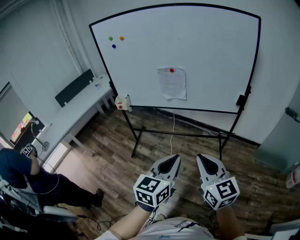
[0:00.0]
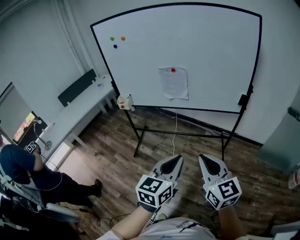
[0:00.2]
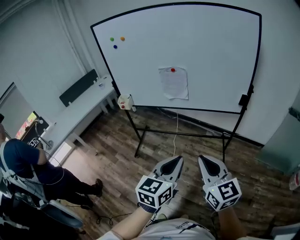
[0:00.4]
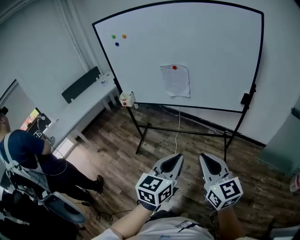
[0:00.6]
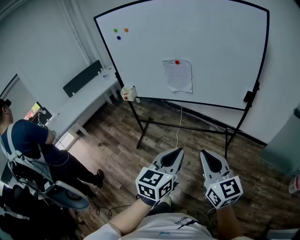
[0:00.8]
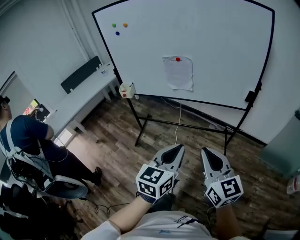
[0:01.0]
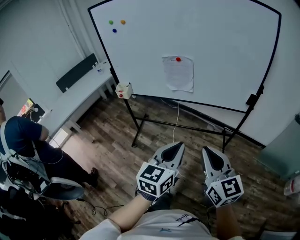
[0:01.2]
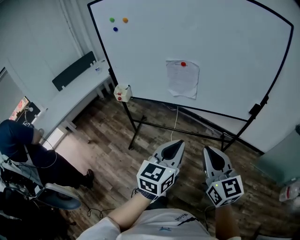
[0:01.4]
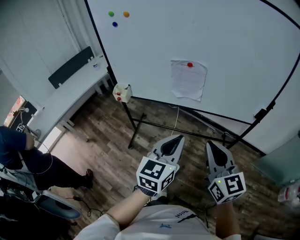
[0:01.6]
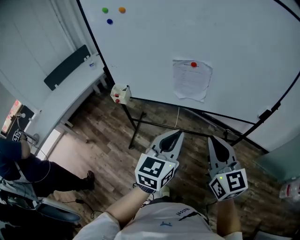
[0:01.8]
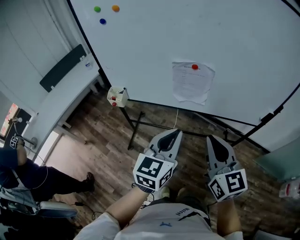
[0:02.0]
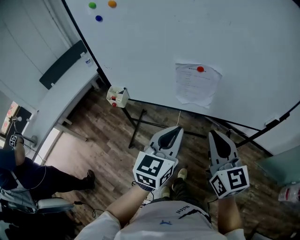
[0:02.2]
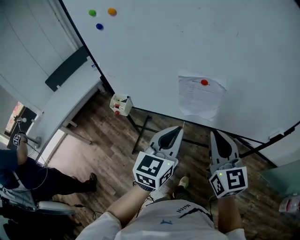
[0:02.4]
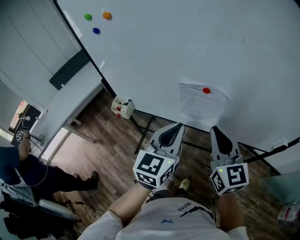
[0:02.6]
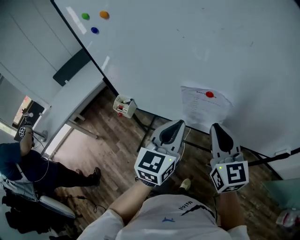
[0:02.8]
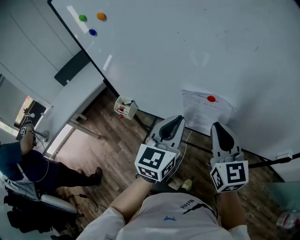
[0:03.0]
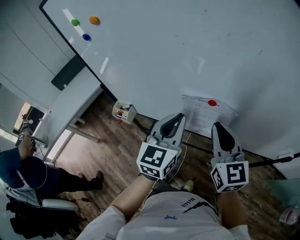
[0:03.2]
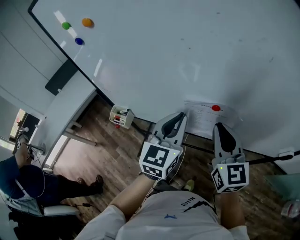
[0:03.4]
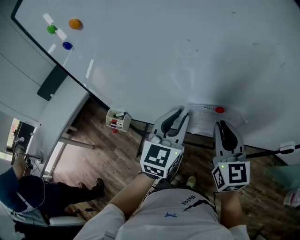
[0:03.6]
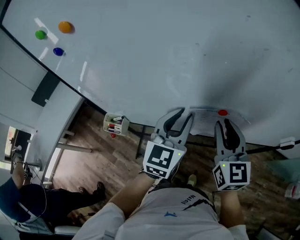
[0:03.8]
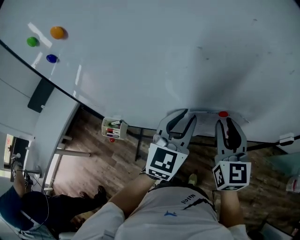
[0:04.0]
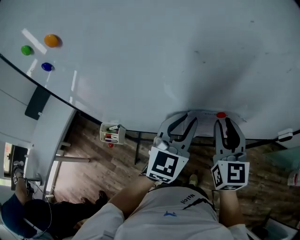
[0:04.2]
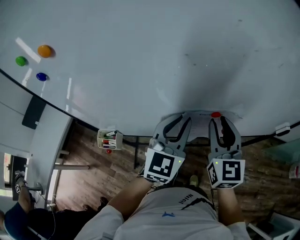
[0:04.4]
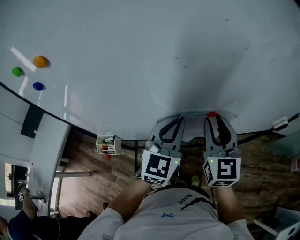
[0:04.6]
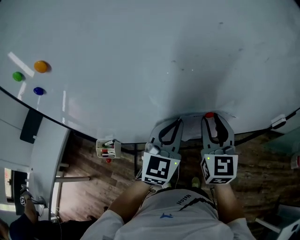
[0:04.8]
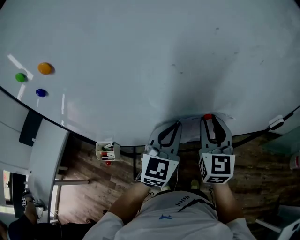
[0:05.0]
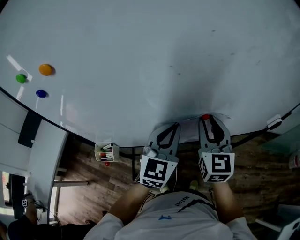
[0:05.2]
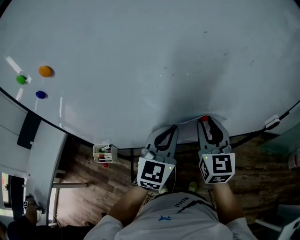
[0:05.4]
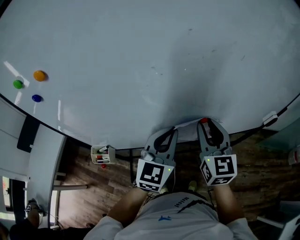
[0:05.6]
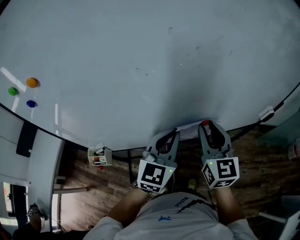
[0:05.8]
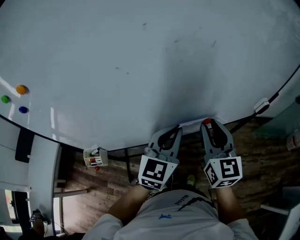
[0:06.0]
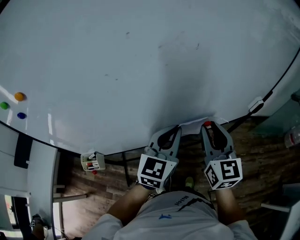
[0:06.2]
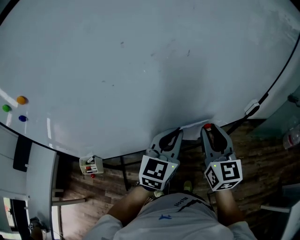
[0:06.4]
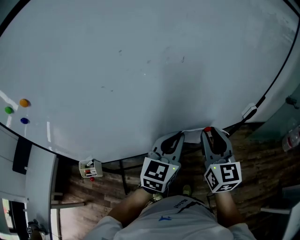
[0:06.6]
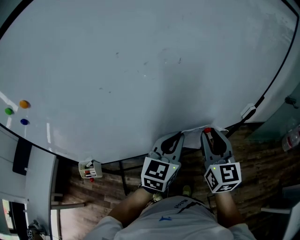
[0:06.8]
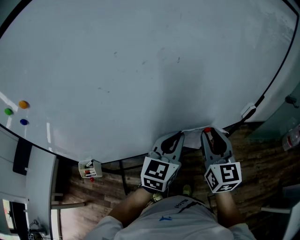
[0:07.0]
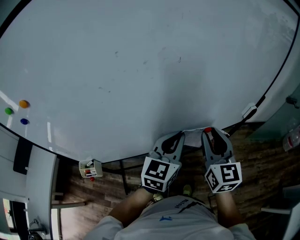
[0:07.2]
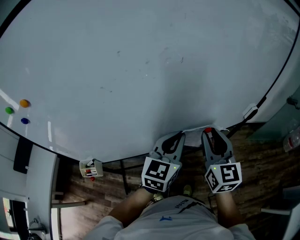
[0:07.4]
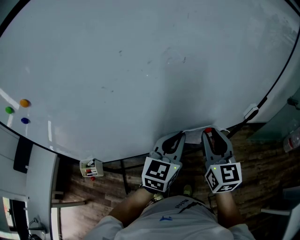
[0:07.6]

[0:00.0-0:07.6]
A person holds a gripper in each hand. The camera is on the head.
0.0 to 1.6 s: Both grippers travel together forward, some 20 cm.
1.6 to 3.0 s: The grippers both shift forward by approximately 35 cm.
3.0 to 4.6 s: The left gripper ends up roughly 10 cm from where it was, and turns by roughly 30 degrees; the right gripper shifts by some 5 cm, turns by roughly 30 degrees, and opens its fingers.
4.6 to 6.0 s: The grippers both shift to the right by roughly 10 cm.
6.0 to 7.6 s: Both grippers travel together to the right, some 5 cm.

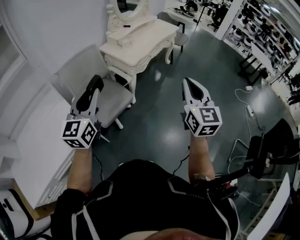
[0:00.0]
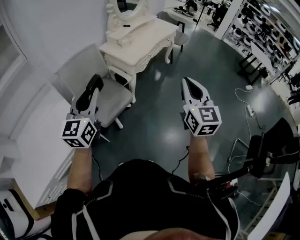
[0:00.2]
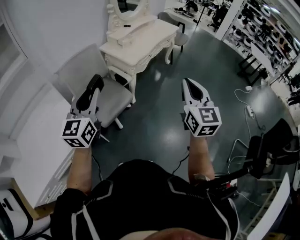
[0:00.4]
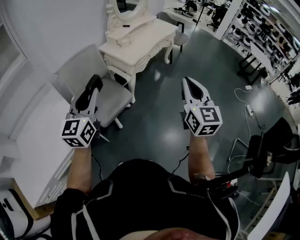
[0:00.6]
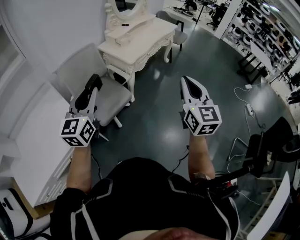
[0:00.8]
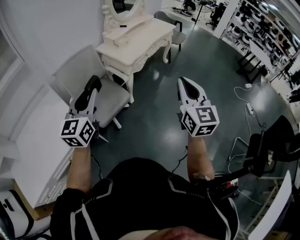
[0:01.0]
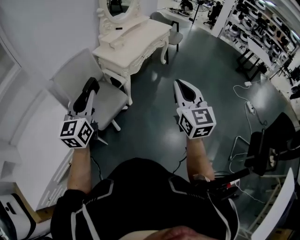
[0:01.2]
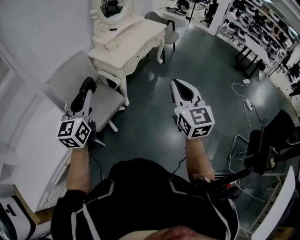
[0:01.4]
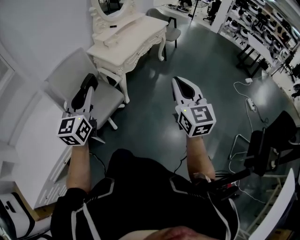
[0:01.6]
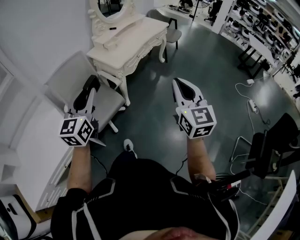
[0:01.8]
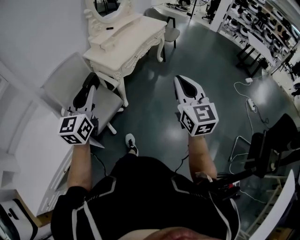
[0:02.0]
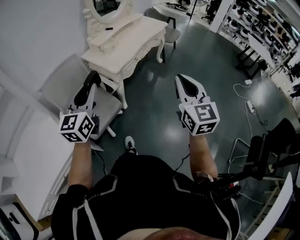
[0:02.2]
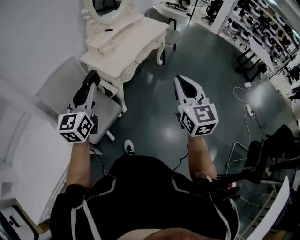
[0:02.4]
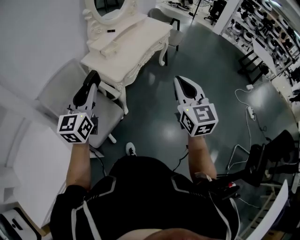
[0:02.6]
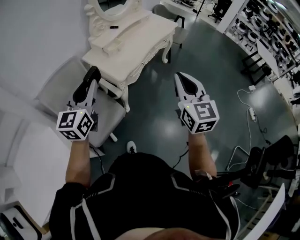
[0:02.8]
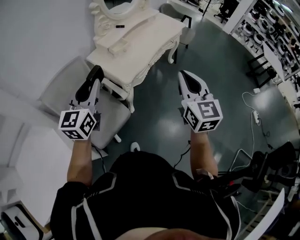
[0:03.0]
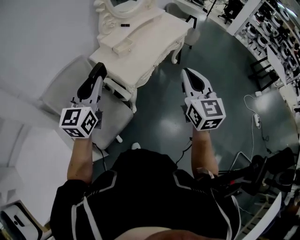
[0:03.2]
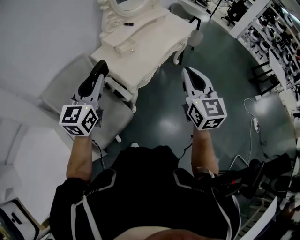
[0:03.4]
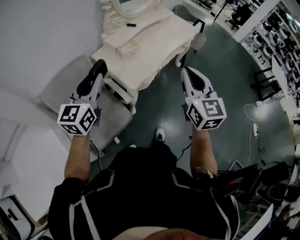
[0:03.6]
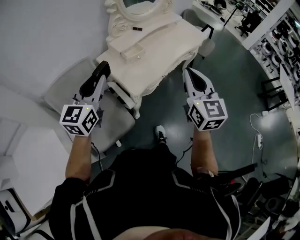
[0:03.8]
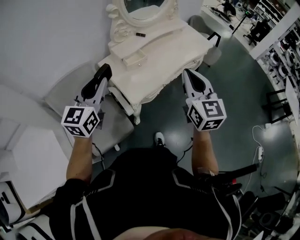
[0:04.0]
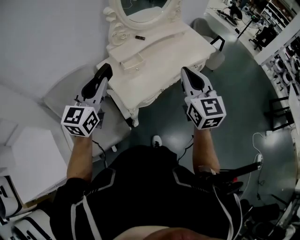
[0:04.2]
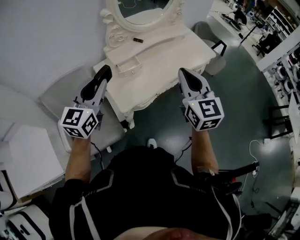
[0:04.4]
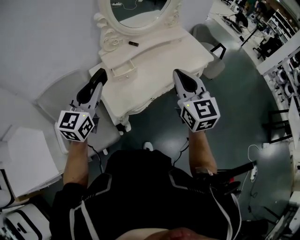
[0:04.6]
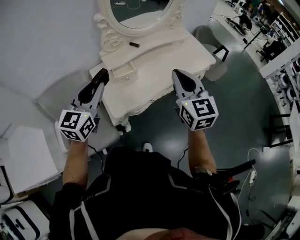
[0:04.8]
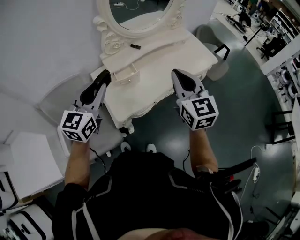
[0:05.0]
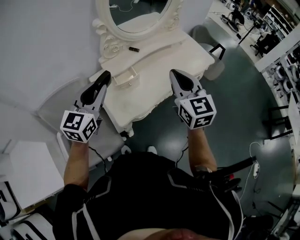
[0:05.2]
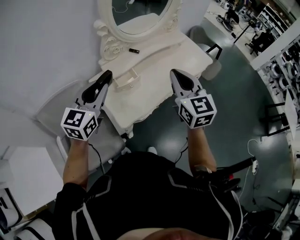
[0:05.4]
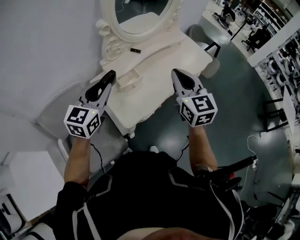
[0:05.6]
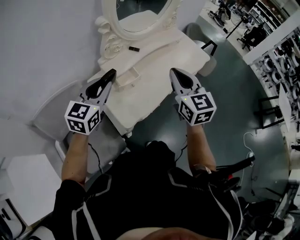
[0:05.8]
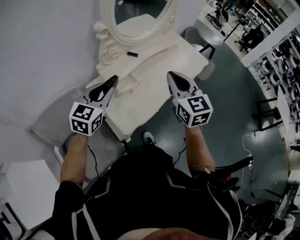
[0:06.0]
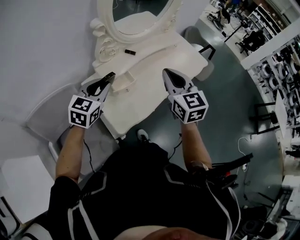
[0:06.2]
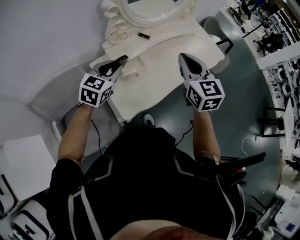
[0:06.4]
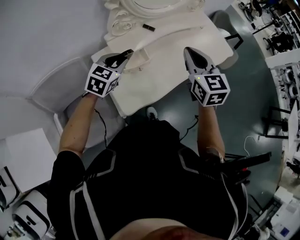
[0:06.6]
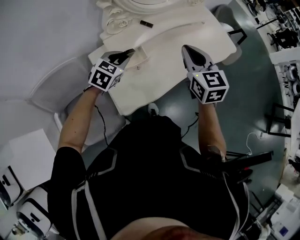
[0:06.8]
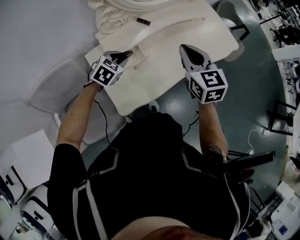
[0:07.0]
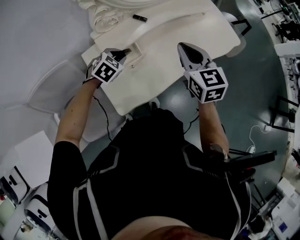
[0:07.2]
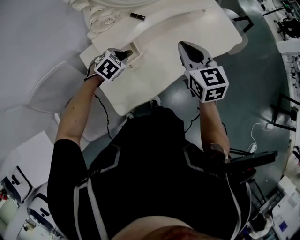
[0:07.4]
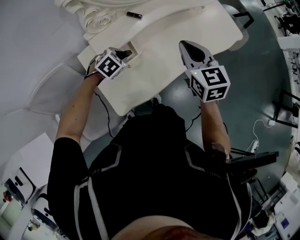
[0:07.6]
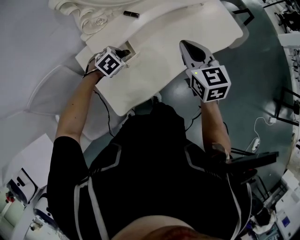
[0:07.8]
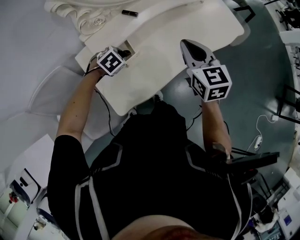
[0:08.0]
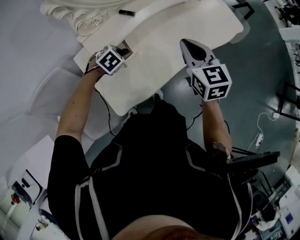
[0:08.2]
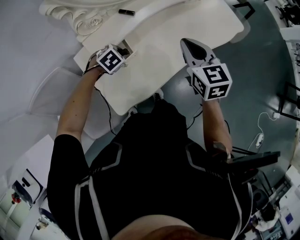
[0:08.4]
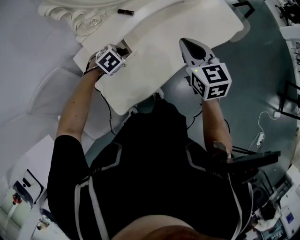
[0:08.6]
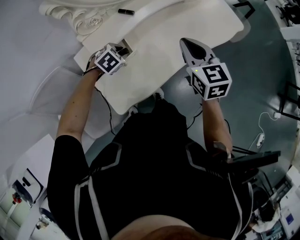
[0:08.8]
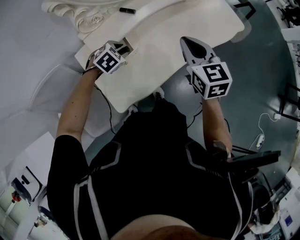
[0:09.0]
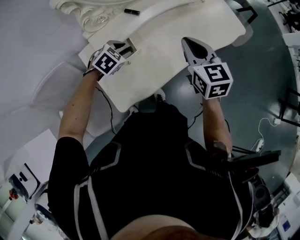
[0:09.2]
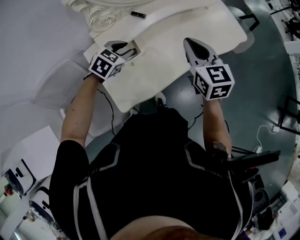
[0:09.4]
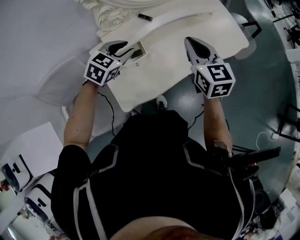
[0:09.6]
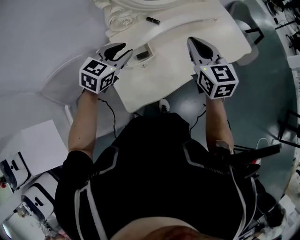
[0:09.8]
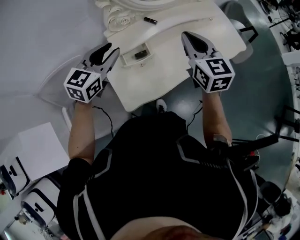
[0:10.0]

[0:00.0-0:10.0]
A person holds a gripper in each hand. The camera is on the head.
0.0 to 1.4 s: The grippers both shift to the right by approximately 5 cm.
1.4 to 2.8 s: The grippers both shift forward by roughly 30 cm.
2.8 to 4.2 s: Both grippers move forward, some 25 cm.
4.2 to 5.8 s: The grippers both shift forward by roughly 15 cm.
5.8 to 7.2 s: The right gripper goes roughly 20 cm forward and downward. Meanwhile the left gripper shifts roughly 30 cm downward and forward, and points its fingers about 40 degrees further downward.
7.2 to 8.6 s: The left gripper is displaced downward by about 10 cm; the right gripper changes place by about 5 cm.
8.6 to 10.0 s: The left gripper heads upward, covering roughly 30 cm, and tilts its fingers roughly 50 degrees upward. Meanwhile the right gripper goes some 10 cm upward and to the left.

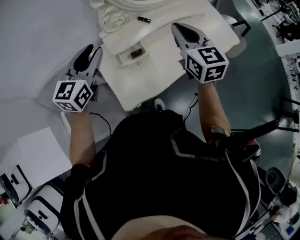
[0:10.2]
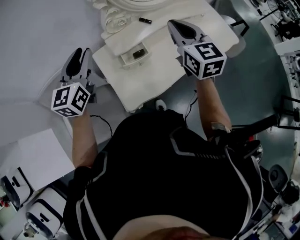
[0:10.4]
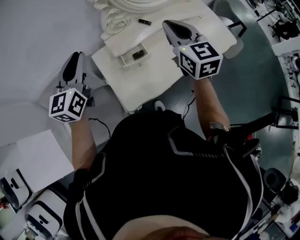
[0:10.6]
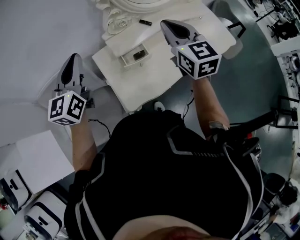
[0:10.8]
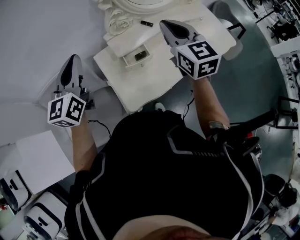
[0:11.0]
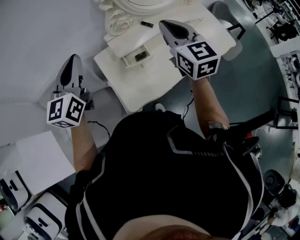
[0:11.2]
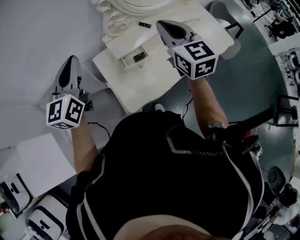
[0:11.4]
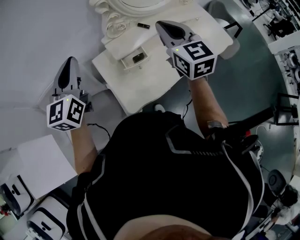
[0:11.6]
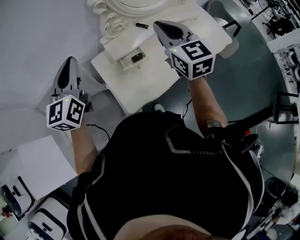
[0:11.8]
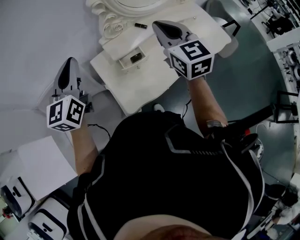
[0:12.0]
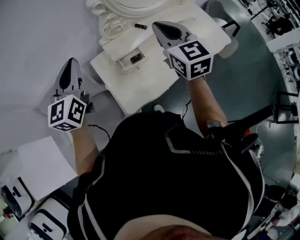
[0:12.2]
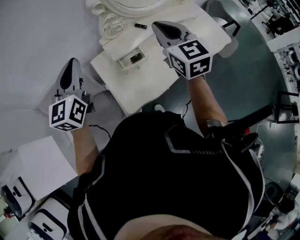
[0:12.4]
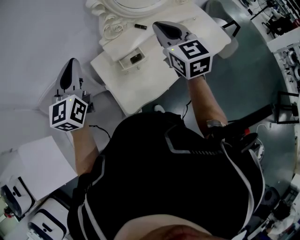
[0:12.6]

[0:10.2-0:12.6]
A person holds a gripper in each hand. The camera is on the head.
10.2 to 11.4 s: The right gripper goes some 5 cm to the left. The left gripper heads to the left and upward, covering about 10 cm, and closes up.
11.4 to 12.6 s: The grippers move only a little.

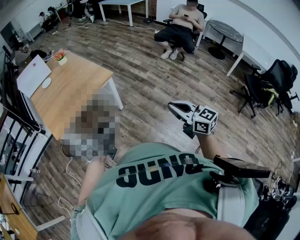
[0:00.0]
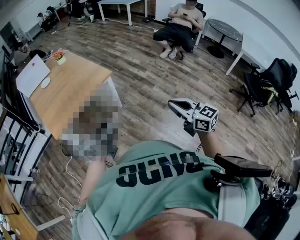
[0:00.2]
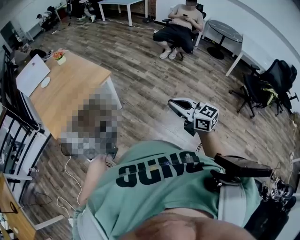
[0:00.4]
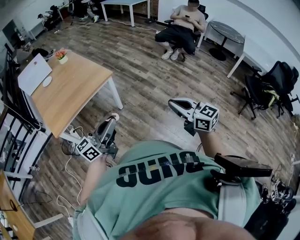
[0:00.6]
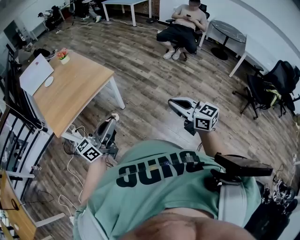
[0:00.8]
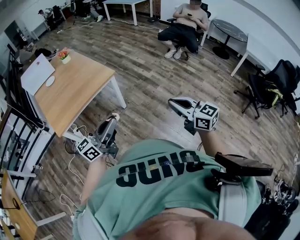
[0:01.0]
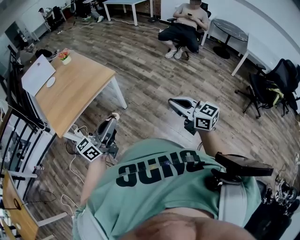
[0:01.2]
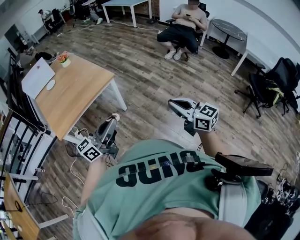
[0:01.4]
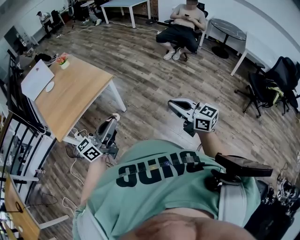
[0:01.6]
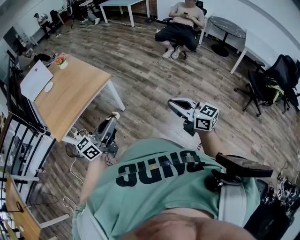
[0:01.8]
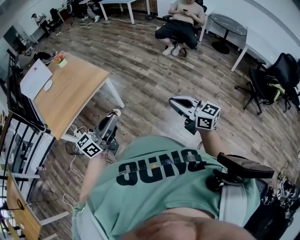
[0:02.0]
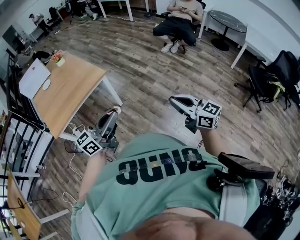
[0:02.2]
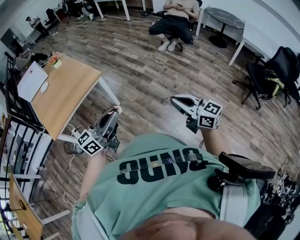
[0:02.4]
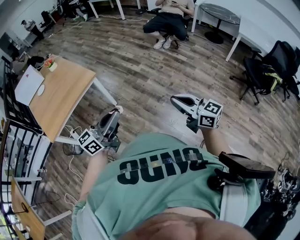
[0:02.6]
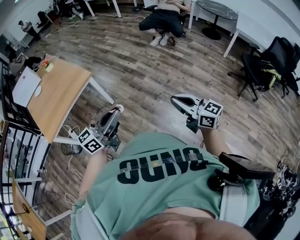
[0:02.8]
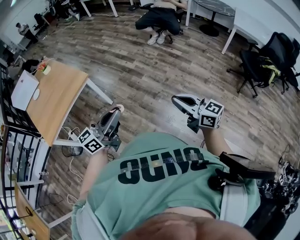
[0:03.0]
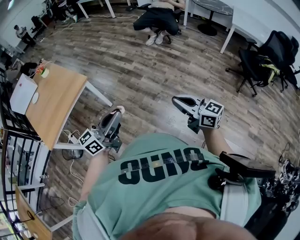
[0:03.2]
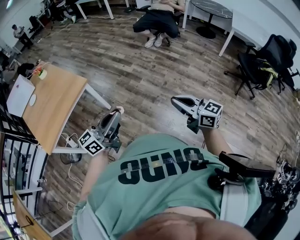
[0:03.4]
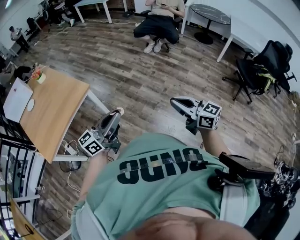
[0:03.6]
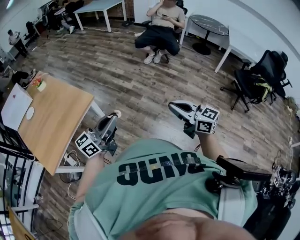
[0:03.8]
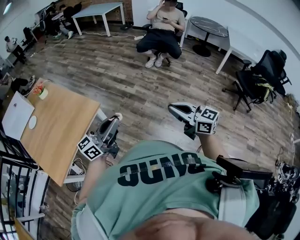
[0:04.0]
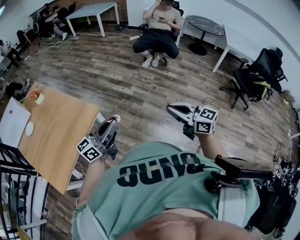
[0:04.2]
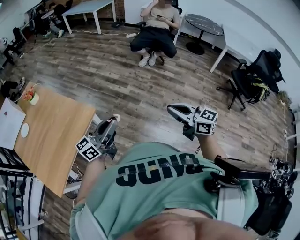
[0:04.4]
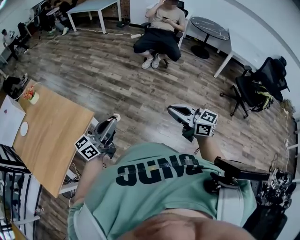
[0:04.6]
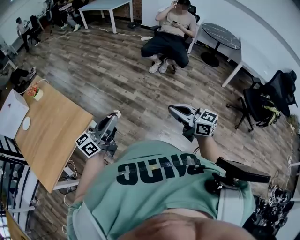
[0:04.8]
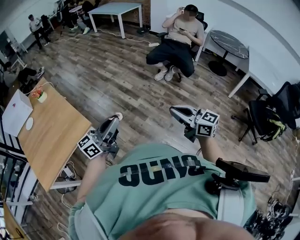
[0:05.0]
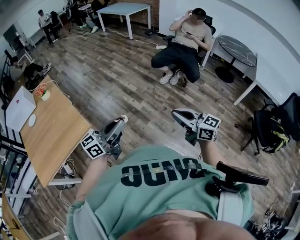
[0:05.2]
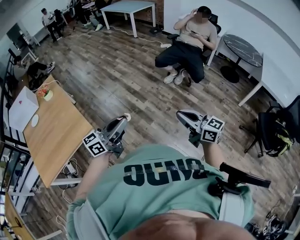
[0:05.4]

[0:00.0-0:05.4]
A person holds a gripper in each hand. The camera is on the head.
0.0 to 1.4 s: The two grippers go some 5 cm to the right.
1.4 to 2.8 s: The grippers both shift to the right by approximately 20 cm.
2.8 to 4.0 s: The right gripper moves to the left and forward, approximately 25 cm. The left gripper goes approximately 30 cm forward and to the left.
4.0 to 5.4 s: The grippers both shift forward and to the right by about 35 cm.
